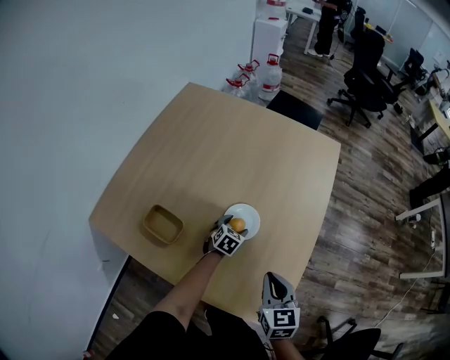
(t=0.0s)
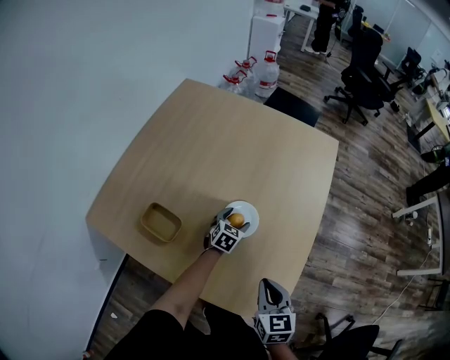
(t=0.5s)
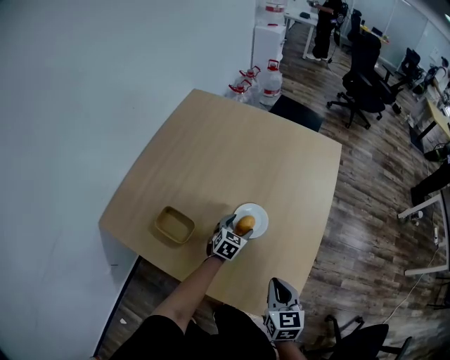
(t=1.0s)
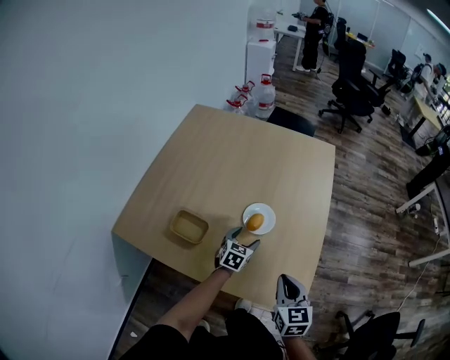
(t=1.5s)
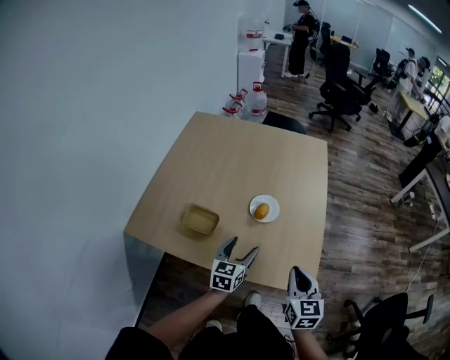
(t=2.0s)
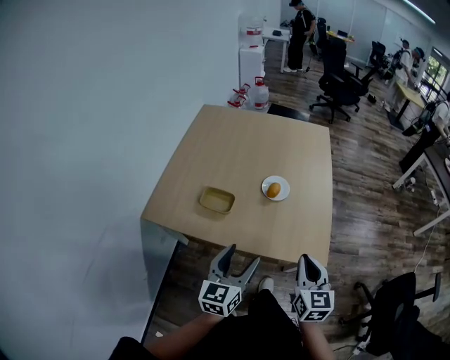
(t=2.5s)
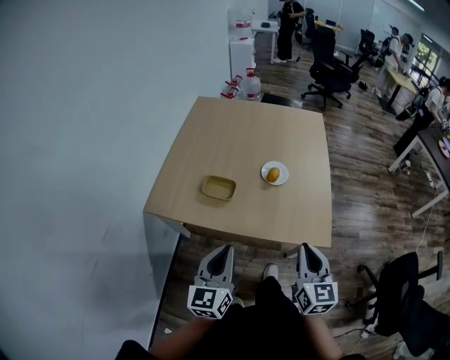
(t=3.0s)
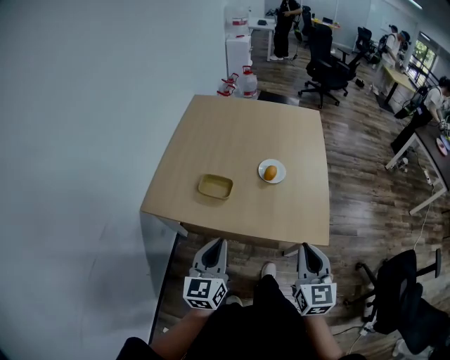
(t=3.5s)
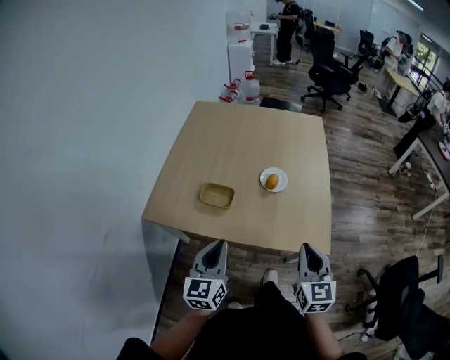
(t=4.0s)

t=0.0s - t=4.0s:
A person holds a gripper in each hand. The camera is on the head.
t=0.0s - t=2.0s: The right gripper is displaced backward and upward by about 15 cm. The left gripper heads backward and upward, covering approximately 30 cm, and turns by about 30 degrees.
t=2.0s - t=4.0s: The left gripper is displaced backward, upward and to the left by about 25 cm, and closes its fingers, while the right gripper heads backward and upward, covering about 10 cm.

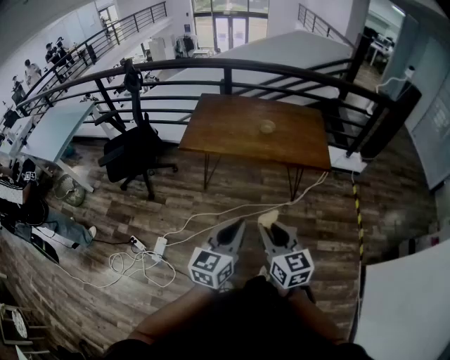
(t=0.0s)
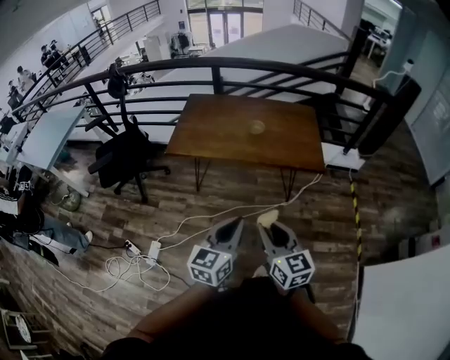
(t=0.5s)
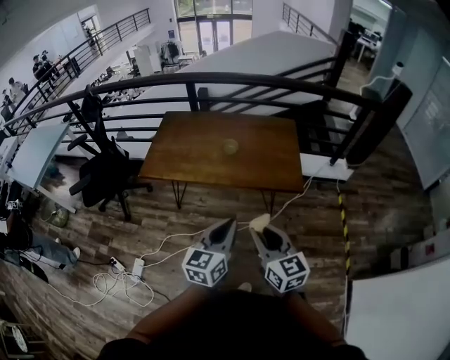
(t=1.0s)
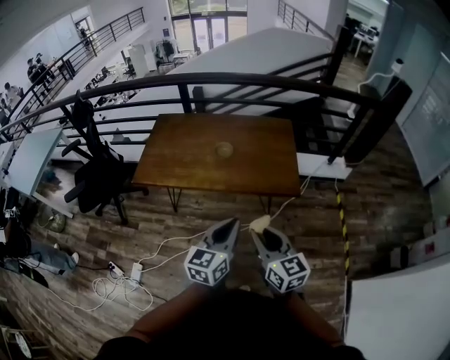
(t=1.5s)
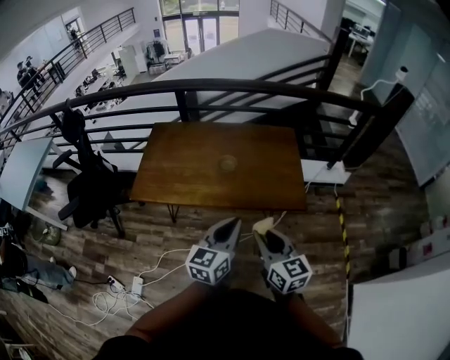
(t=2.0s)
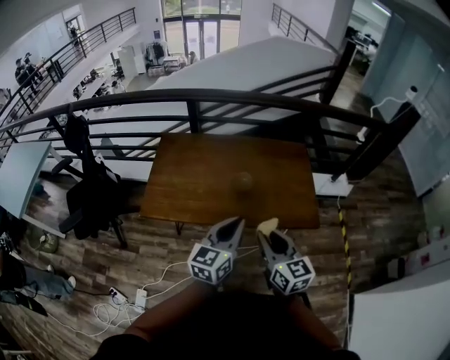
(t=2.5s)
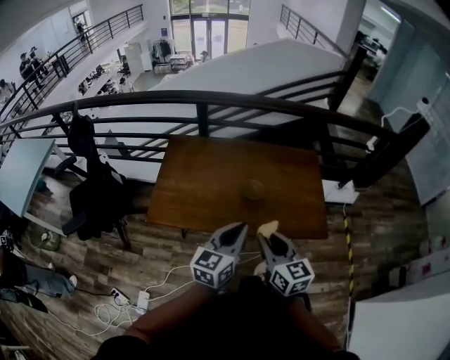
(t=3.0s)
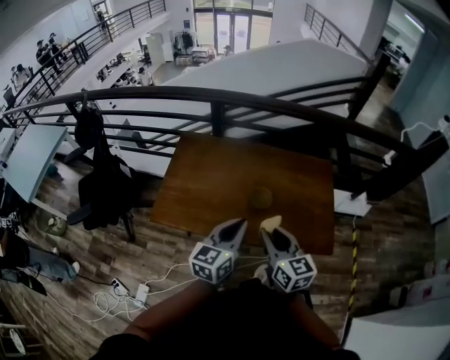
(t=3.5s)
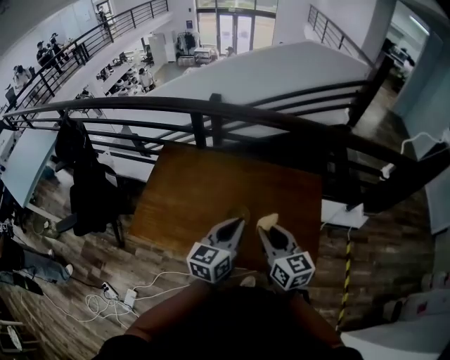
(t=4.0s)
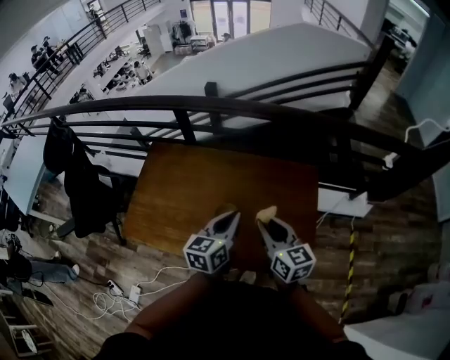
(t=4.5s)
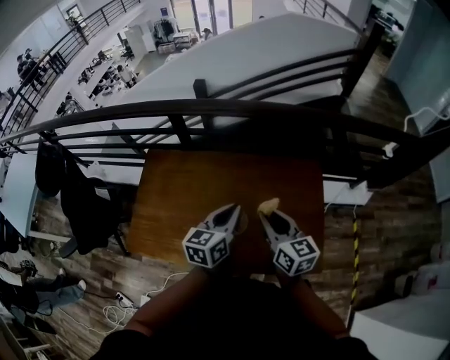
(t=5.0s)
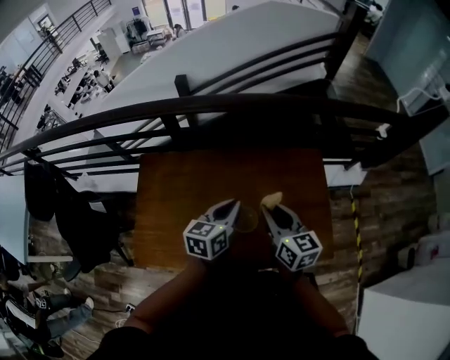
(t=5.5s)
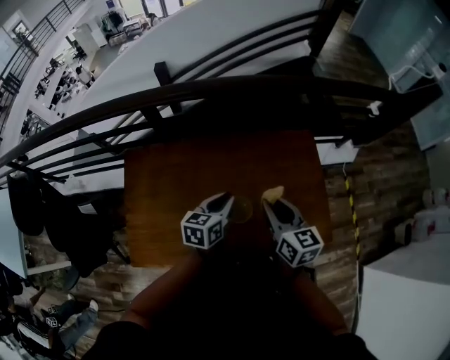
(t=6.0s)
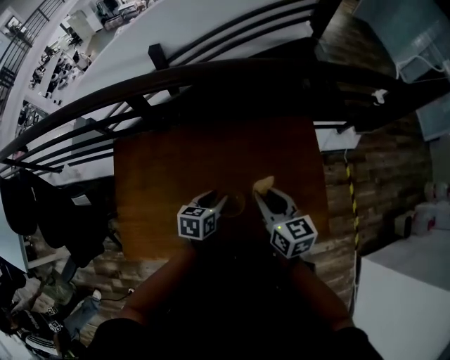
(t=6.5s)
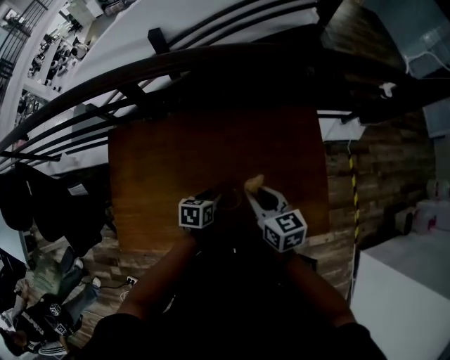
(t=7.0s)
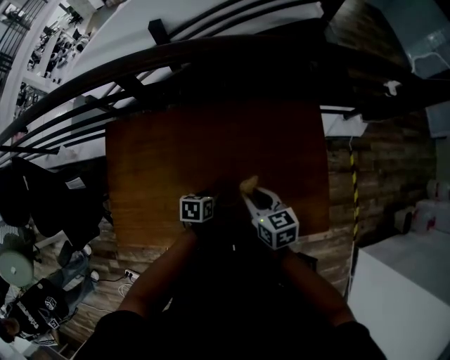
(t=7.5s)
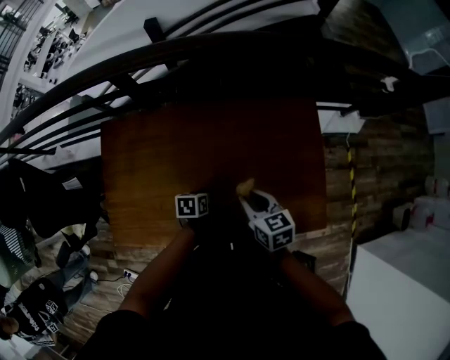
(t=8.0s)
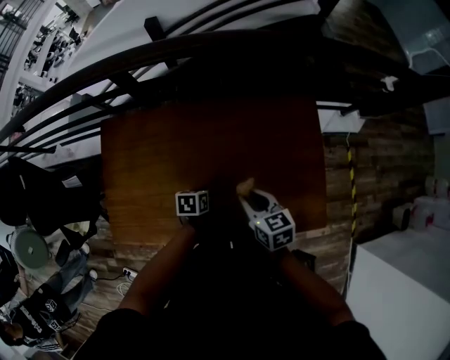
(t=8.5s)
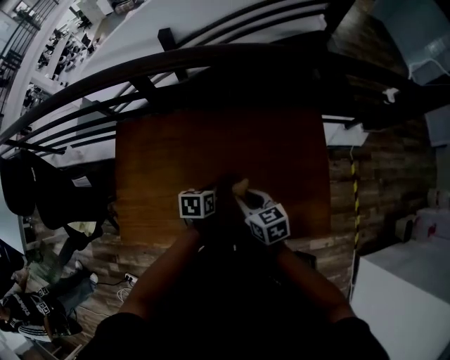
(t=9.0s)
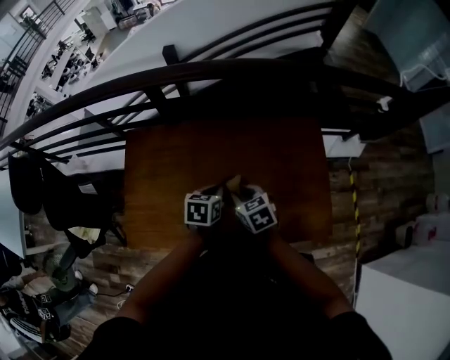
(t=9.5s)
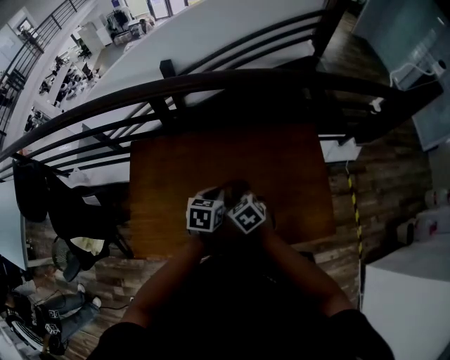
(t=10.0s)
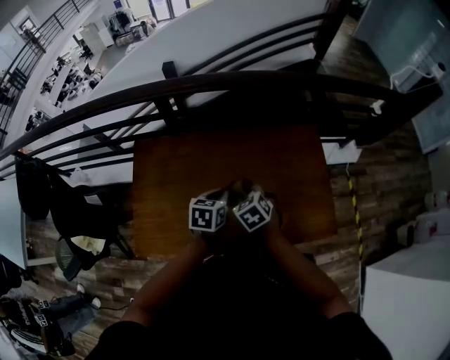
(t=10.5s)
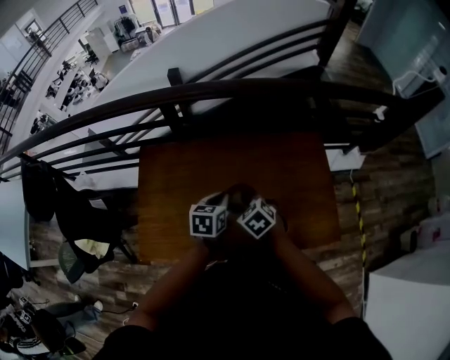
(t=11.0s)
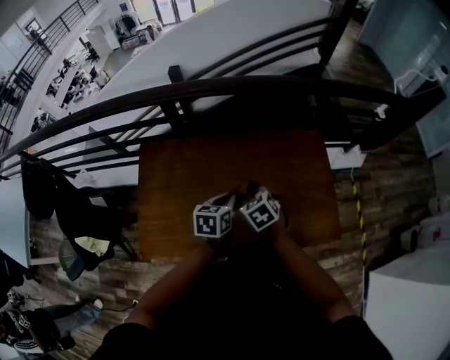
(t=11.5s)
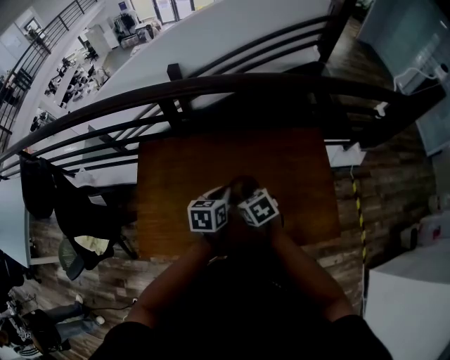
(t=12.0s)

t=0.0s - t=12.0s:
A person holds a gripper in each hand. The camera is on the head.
t=0.0s - t=2.0s: The grippers both shift forward and to the right by approximately 40 cm.
t=2.0s - t=4.0s: The two grippers go about 35 cm forward.
t=4.0s - t=6.0s: The grippers both shift forward and downward by about 20 cm. The right gripper rotates approximately 20 degrees. Meanwhile the left gripper turns by some 30 degrees.
t=6.0s - t=8.0s: The right gripper travels downward by about 15 cm, and turns by about 20 degrees. The left gripper travels downward by about 25 cm, and changes its angle by roughly 30 degrees.
t=8.0s - t=10.0s: The left gripper is displaced upward by roughly 20 cm, swivels some 20 degrees, and closes. The right gripper is displaced to the left by approximately 15 cm, and rotates roughly 30 degrees.
t=10.0s - t=12.0s: There are only small adjustments of the grippers.

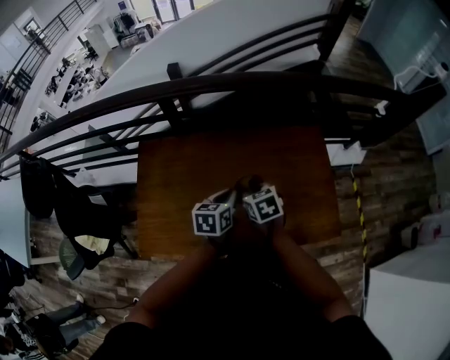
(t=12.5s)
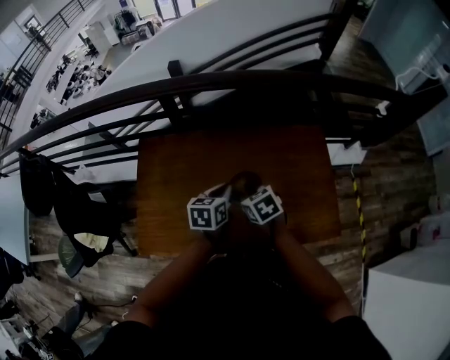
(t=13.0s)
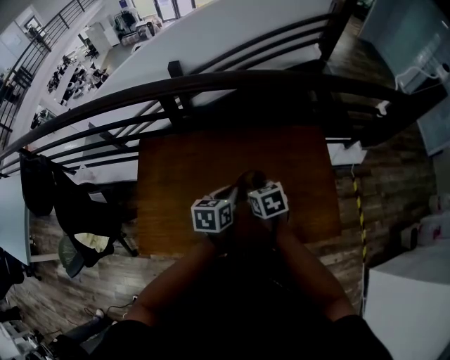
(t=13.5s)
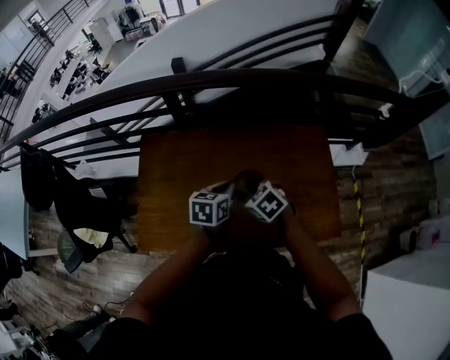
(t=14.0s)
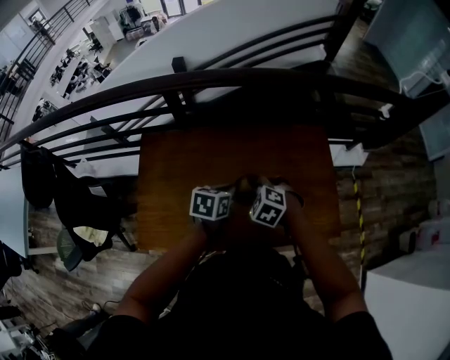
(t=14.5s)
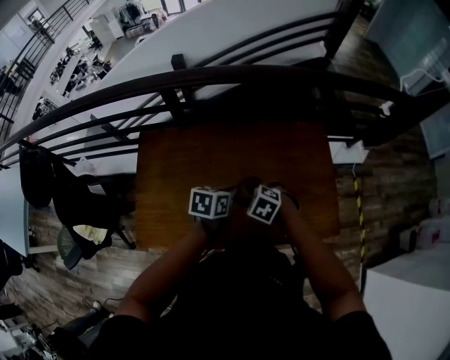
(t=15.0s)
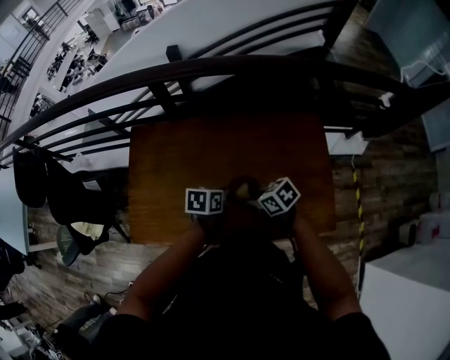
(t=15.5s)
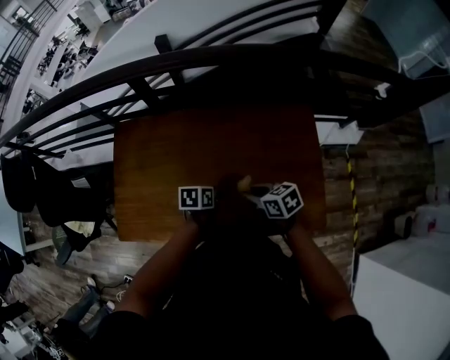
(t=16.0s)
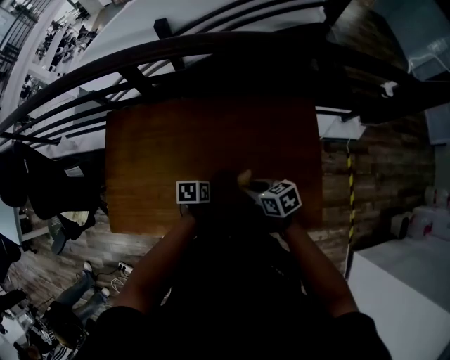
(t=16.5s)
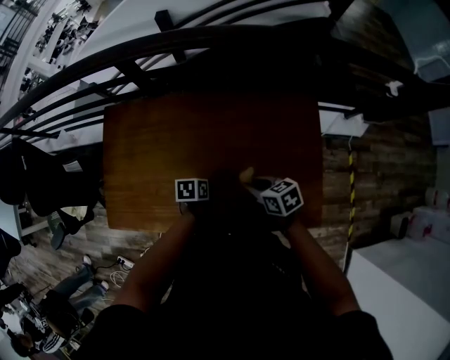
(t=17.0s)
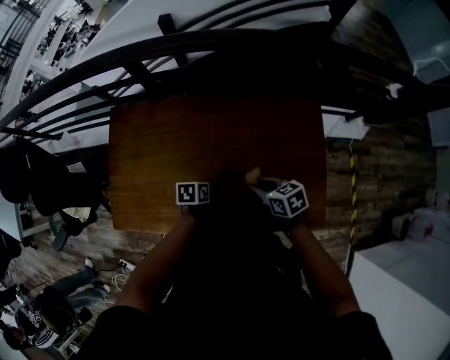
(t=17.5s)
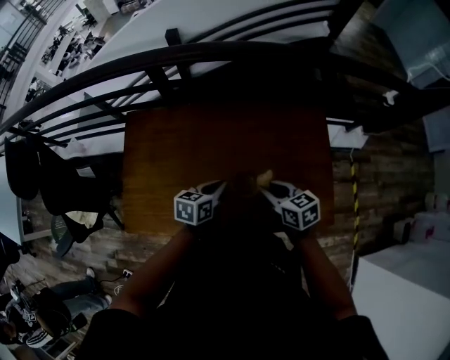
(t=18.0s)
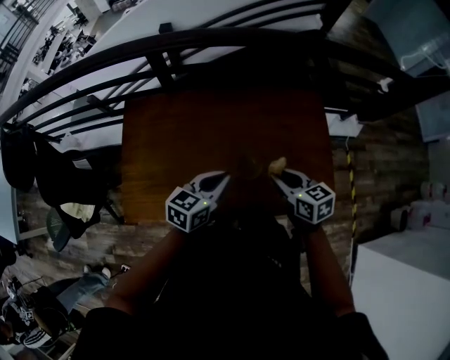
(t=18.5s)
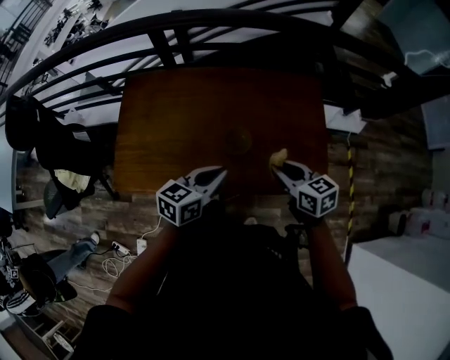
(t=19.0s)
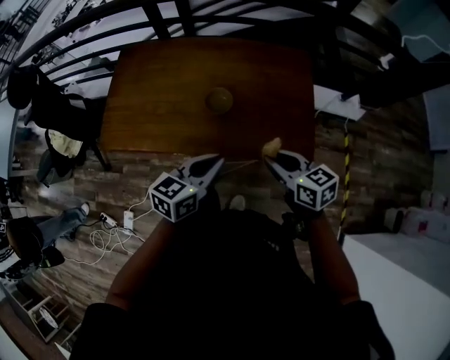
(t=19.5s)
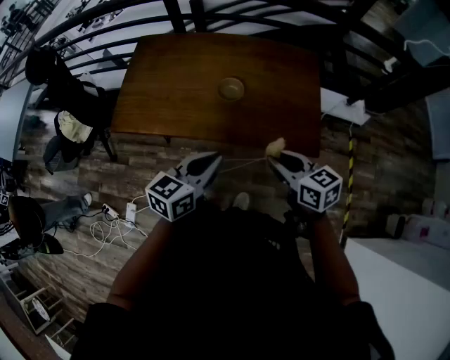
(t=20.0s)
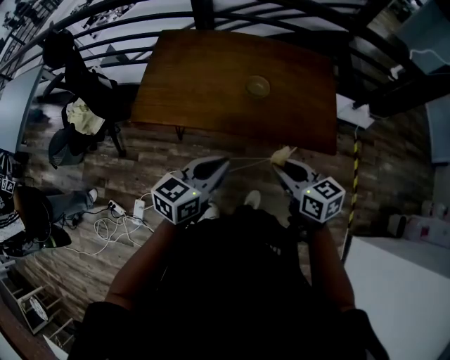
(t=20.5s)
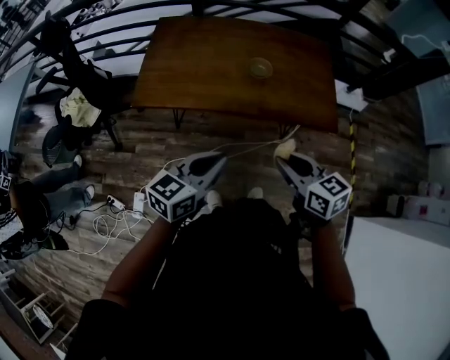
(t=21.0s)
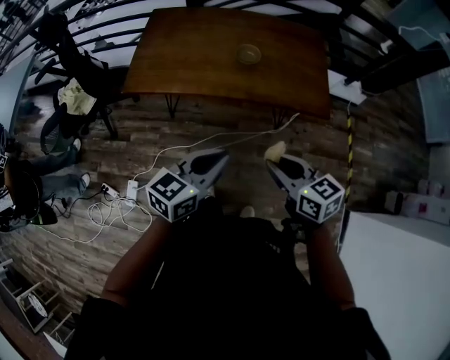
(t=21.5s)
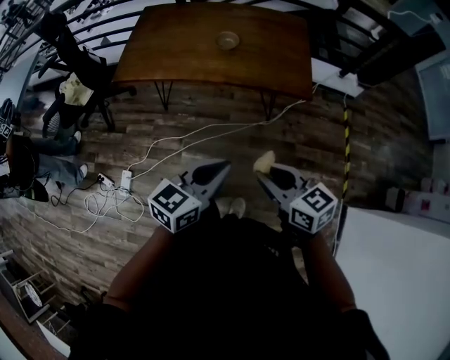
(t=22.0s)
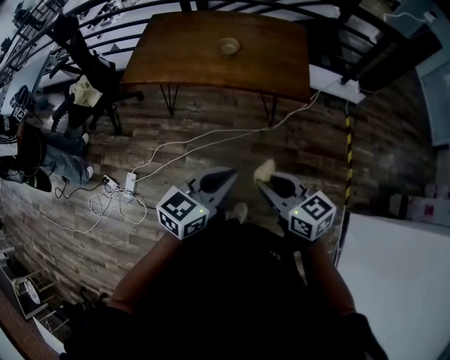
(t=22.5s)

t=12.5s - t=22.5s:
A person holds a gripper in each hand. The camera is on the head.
t=12.5s - t=14.5s: The right gripper twists some 50 degrees counterclockwise, seen from behind.
t=14.5s - t=16.5s: The right gripper shifts by some 15 cm, and rotates around the line of its fingers by approximately 50 degrees, clockwise from behind; the left gripper is displaced downward by about 20 cm, and swivels about 30 degrees.
t=16.5s - t=18.5s: The left gripper shifts approximately 20 cm upward, tips its fingers upward by about 40 degrees, and opens and closes again. Meanwhile the right gripper shifts some 10 cm upward, and swivels some 20 degrees.
t=18.5s - t=20.5s: Both grippers travel together backward, roughly 35 cm.
t=20.5s - t=22.5s: The left gripper travels backward and to the right by some 35 cm. Meanwhile the right gripper moves backward, approximately 30 cm.
